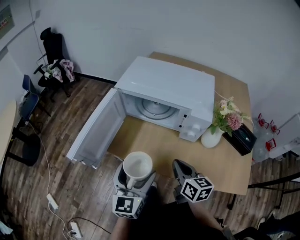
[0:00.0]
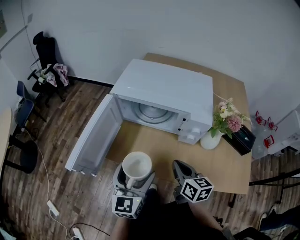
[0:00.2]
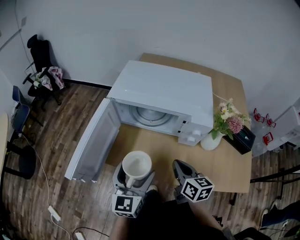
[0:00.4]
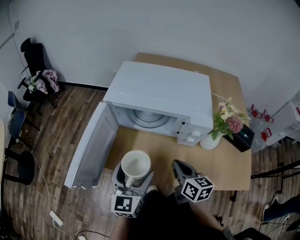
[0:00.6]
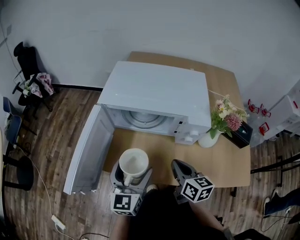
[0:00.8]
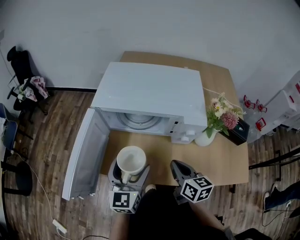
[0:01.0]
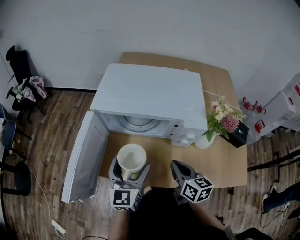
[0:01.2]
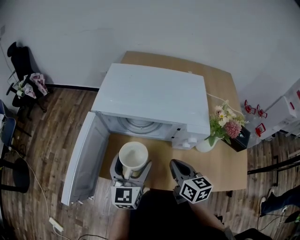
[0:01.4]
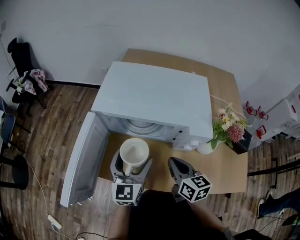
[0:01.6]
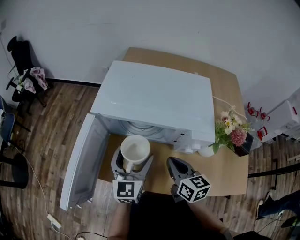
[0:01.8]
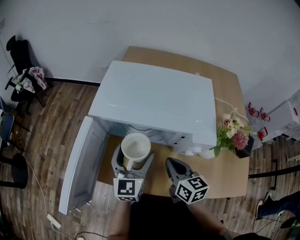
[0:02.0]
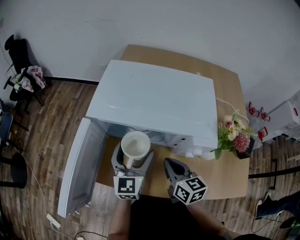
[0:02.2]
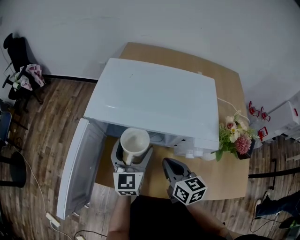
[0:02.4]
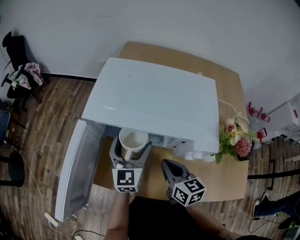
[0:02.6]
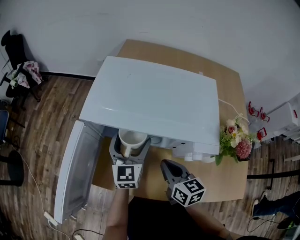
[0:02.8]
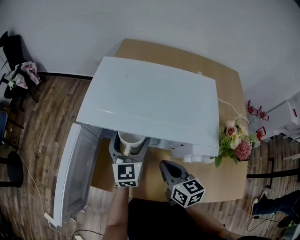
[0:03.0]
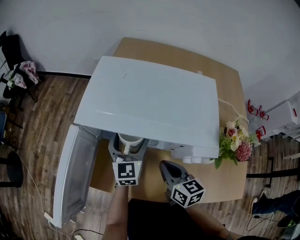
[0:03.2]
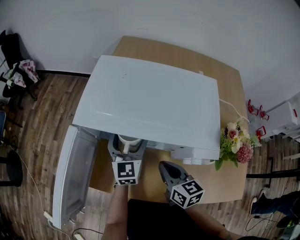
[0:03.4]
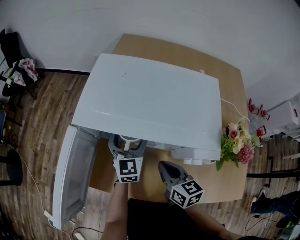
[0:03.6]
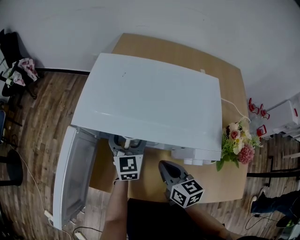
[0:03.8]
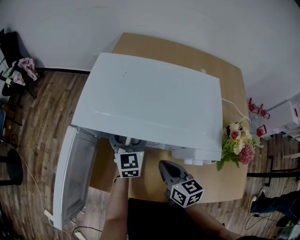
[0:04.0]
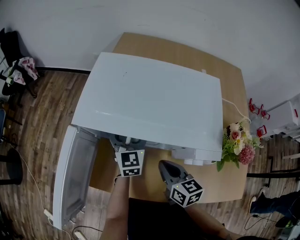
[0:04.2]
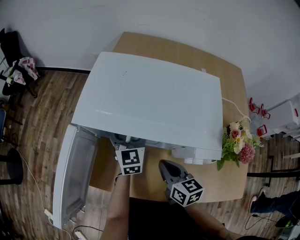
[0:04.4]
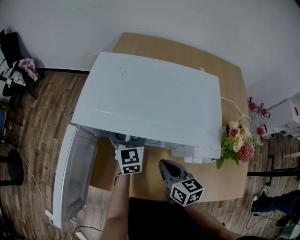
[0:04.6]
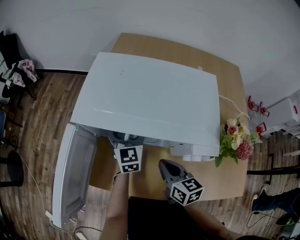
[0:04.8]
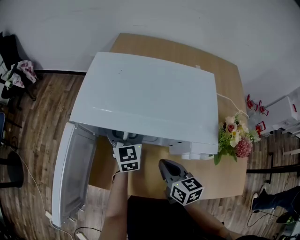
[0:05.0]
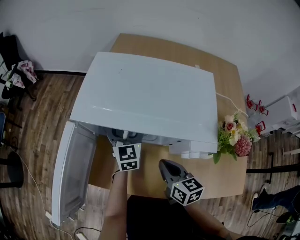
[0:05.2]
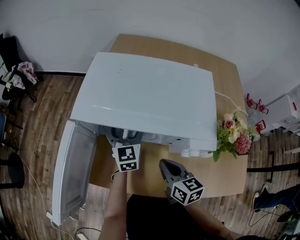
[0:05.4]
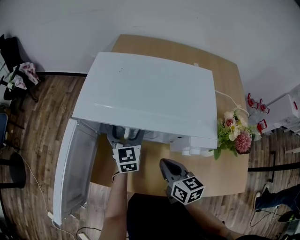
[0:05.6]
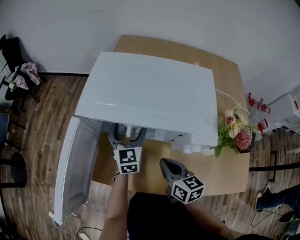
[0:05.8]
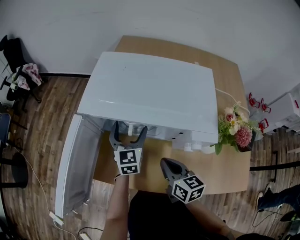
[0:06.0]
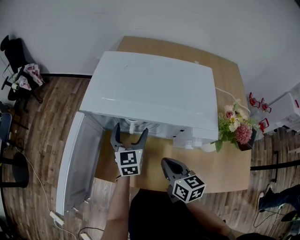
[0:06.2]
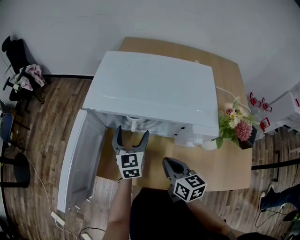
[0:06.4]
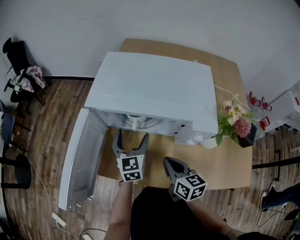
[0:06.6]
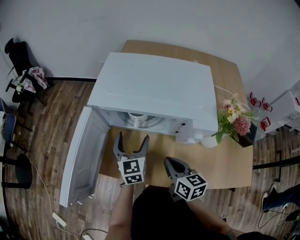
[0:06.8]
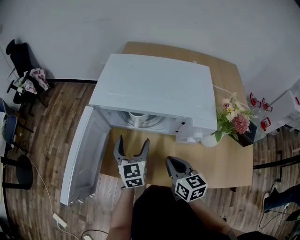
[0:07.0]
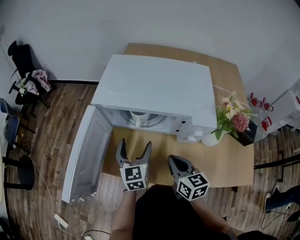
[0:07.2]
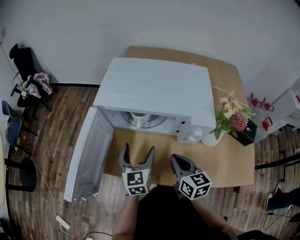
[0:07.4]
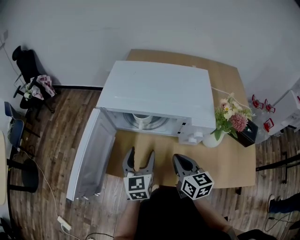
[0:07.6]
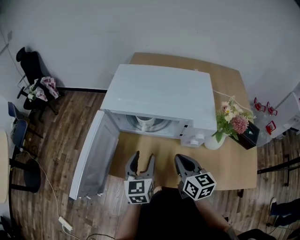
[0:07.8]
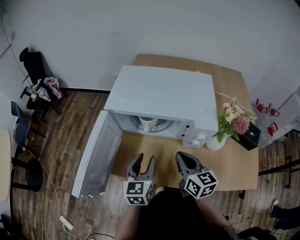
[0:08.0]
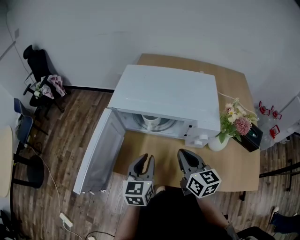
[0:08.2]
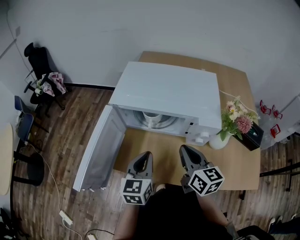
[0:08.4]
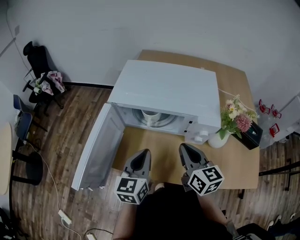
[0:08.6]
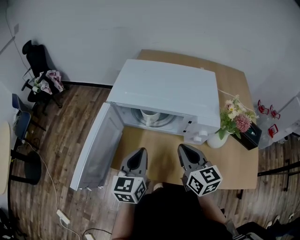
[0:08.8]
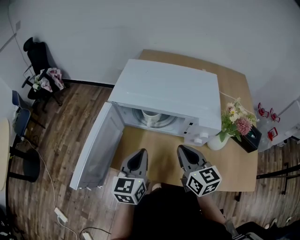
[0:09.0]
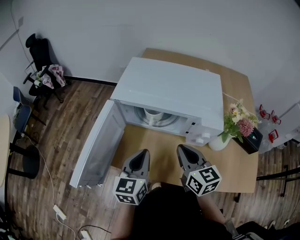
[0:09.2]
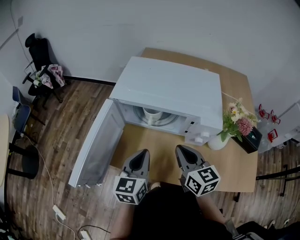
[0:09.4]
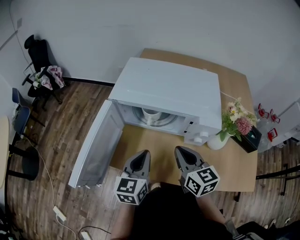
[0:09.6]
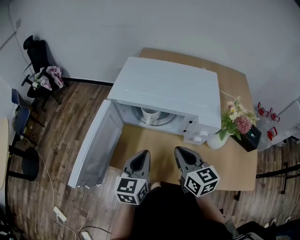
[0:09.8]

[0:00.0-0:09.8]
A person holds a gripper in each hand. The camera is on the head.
0:00.0 to 0:01.4: The left gripper shifts roughly 15 cm forward; the right gripper shifts roughly 10 cm forward.
0:01.4 to 0:02.8: The left gripper goes about 15 cm forward. The right gripper goes some 5 cm forward.
0:02.8 to 0:04.2: The left gripper goes some 5 cm forward.
0:04.2 to 0:05.6: The grippers move only a little.
0:05.6 to 0:07.0: The left gripper travels backward by roughly 10 cm.
0:07.0 to 0:08.4: The right gripper goes some 10 cm upward. Meanwhile the left gripper moves backward and upward, roughly 10 cm, and closes its fingers.
0:08.4 to 0:09.8: The grippers make only small movements.

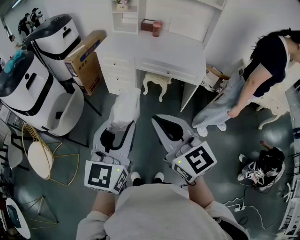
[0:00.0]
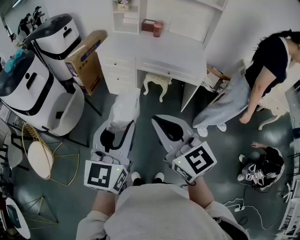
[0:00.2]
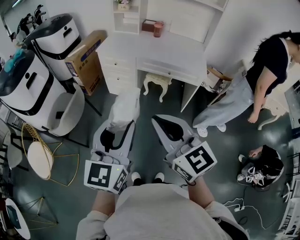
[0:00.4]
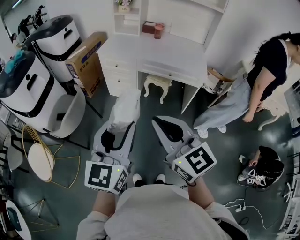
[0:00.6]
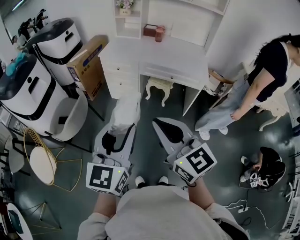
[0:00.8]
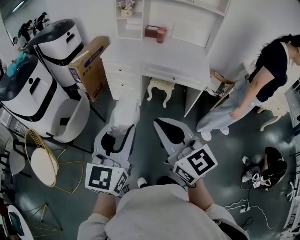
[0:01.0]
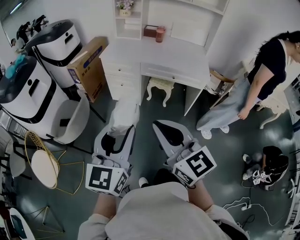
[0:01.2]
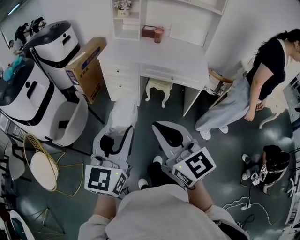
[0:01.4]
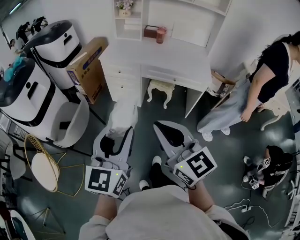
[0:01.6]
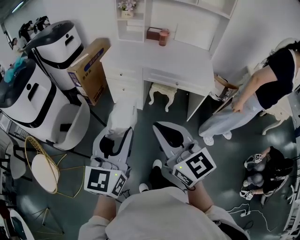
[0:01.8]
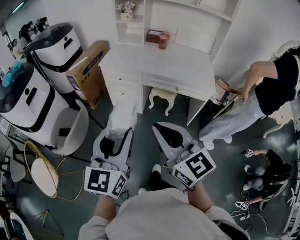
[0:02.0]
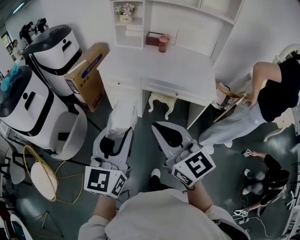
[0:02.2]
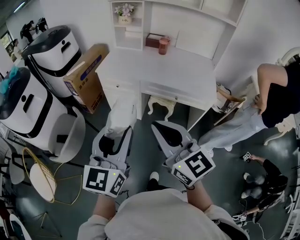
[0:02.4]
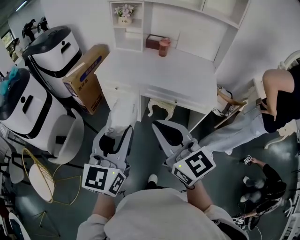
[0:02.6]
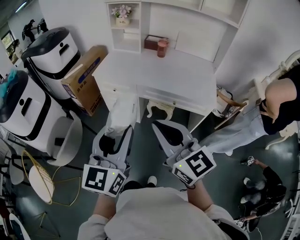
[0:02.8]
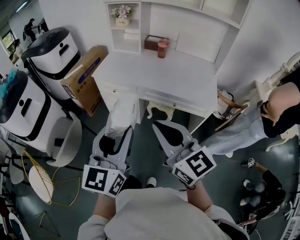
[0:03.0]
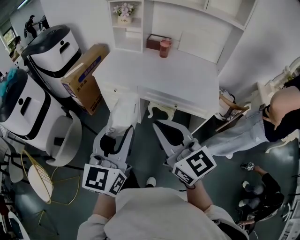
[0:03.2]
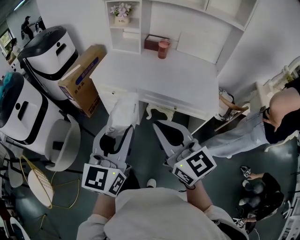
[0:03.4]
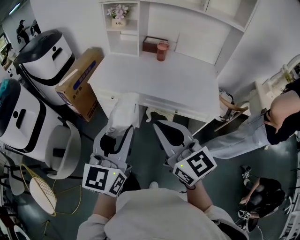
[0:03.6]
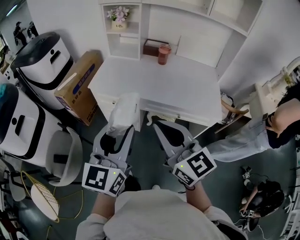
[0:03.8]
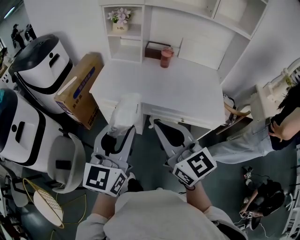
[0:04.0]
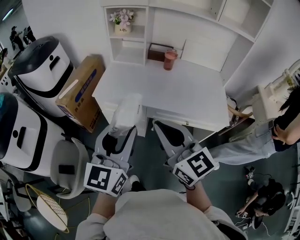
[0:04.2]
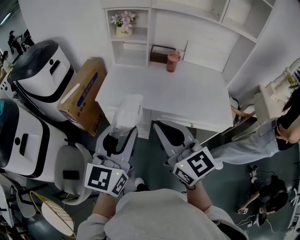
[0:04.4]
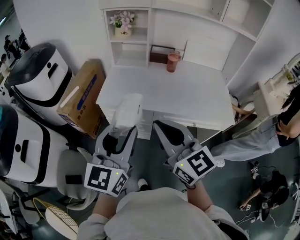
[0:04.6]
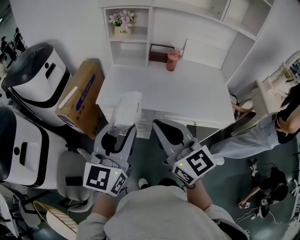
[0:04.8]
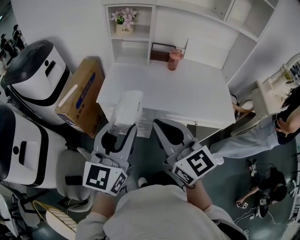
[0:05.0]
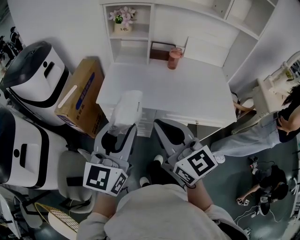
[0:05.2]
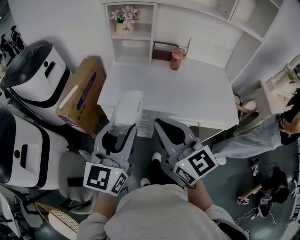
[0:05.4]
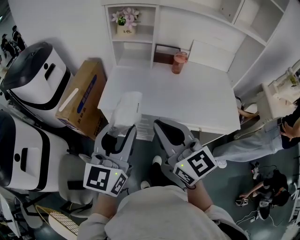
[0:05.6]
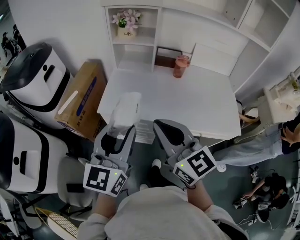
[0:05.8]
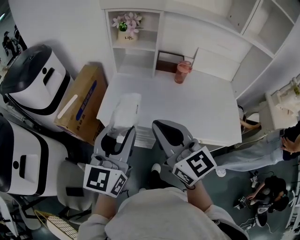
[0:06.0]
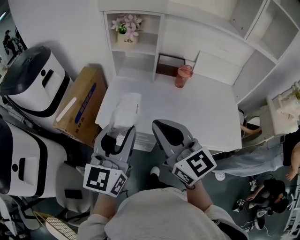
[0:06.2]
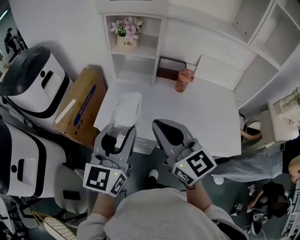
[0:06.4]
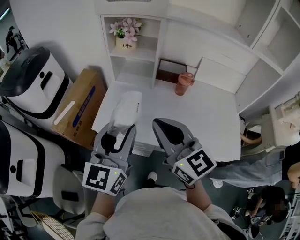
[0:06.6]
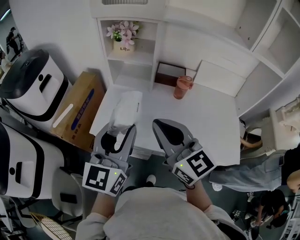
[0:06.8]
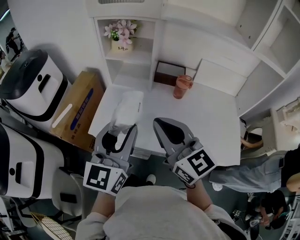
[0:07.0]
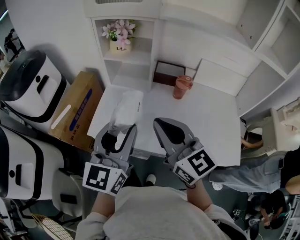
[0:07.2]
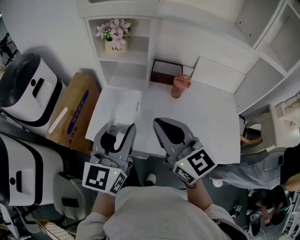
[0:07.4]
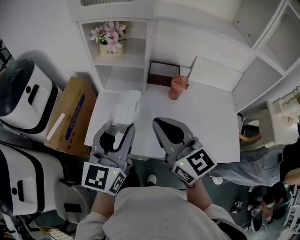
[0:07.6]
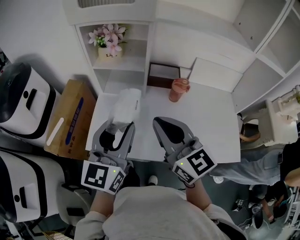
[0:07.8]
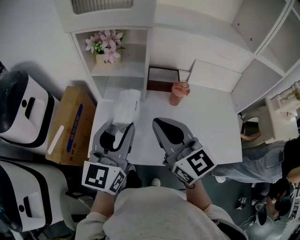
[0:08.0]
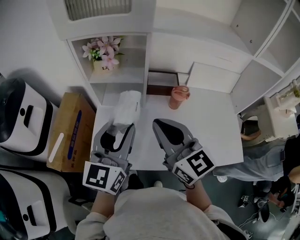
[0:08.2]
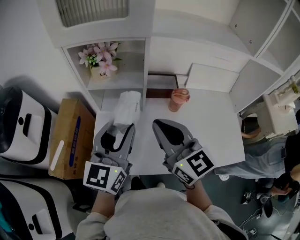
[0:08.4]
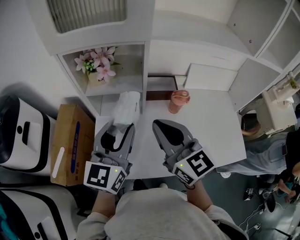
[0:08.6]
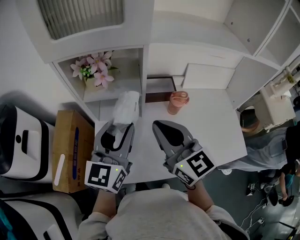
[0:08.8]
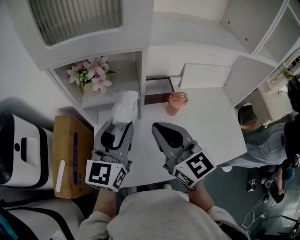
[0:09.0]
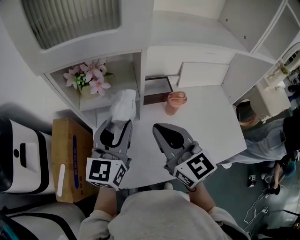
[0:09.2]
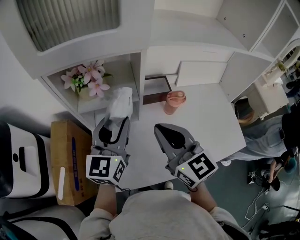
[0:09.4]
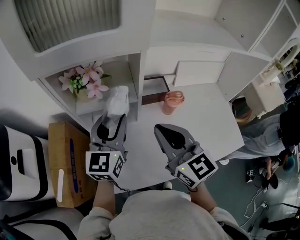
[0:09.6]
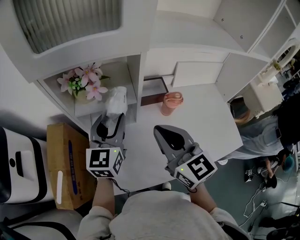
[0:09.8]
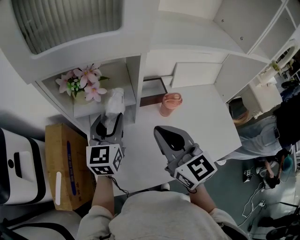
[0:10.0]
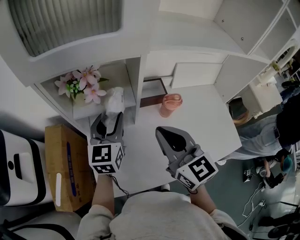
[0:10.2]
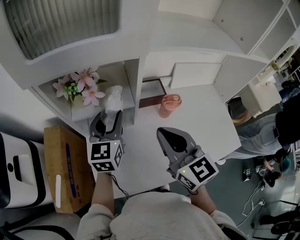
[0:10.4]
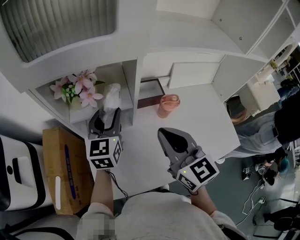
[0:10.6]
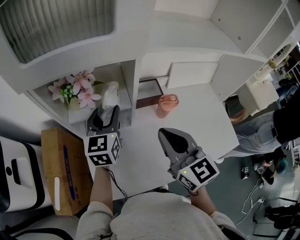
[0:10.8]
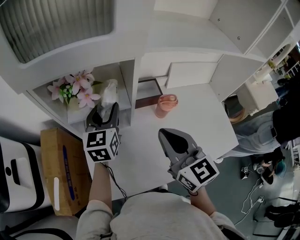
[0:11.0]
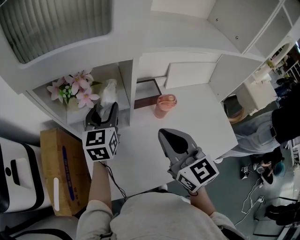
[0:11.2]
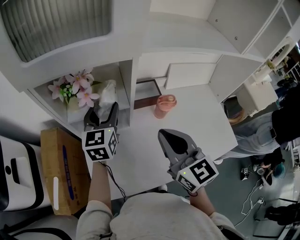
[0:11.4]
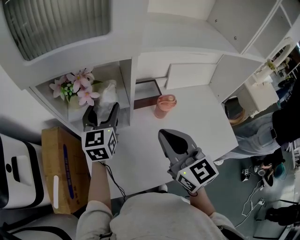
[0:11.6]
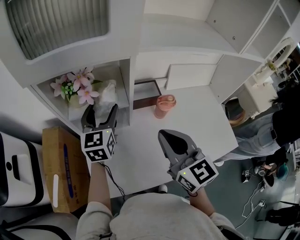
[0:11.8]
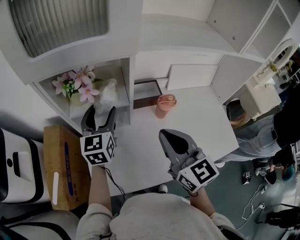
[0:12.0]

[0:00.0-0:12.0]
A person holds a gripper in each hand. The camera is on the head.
0:00.0 to 0:01.6: The two grippers go some 5 cm to the left.
0:01.6 to 0:03.0: The two grippers go approximately 25 cm forward and to the right.
0:03.0 to 0:04.4: Both grippers travel together forward and to the left, about 25 cm.
0:04.4 to 0:06.0: The two grippers go approximately 15 cm forward.
0:06.0 to 0:07.6: The grippers both shift forward and to the right by about 20 cm.
0:07.6 to 0:09.0: The two grippers go approximately 15 cm forward.
0:09.0 to 0:10.4: The left gripper shifts approximately 15 cm forward and downward.
0:10.4 to 0:12.0: The left gripper opens its fingers.

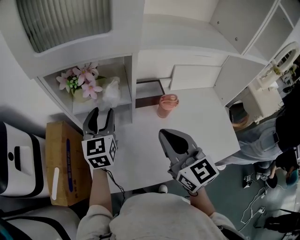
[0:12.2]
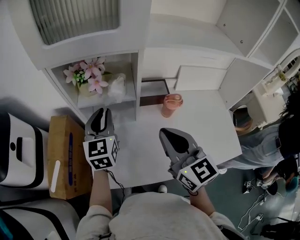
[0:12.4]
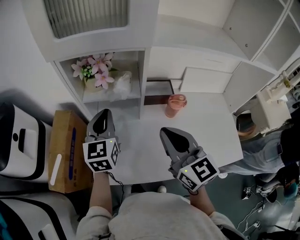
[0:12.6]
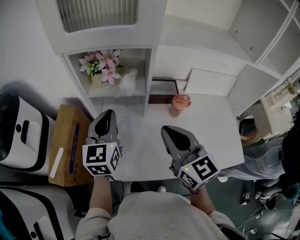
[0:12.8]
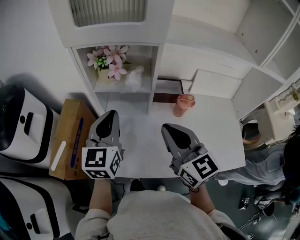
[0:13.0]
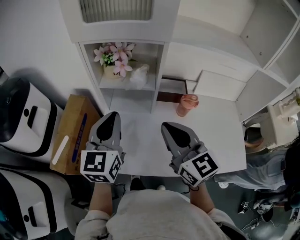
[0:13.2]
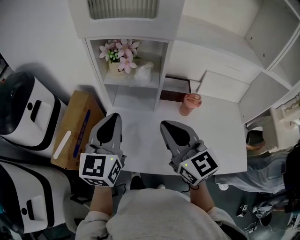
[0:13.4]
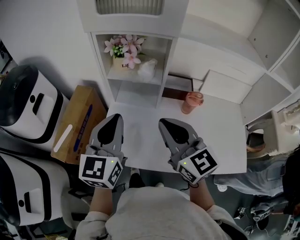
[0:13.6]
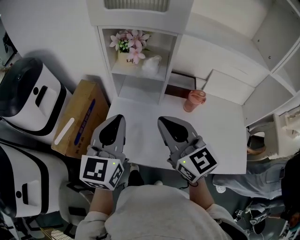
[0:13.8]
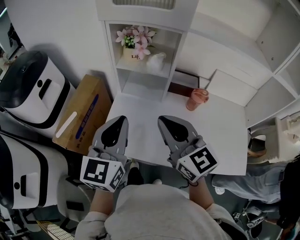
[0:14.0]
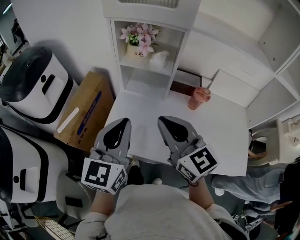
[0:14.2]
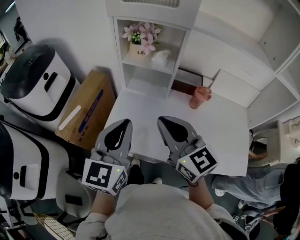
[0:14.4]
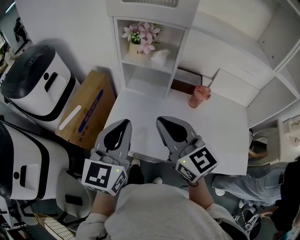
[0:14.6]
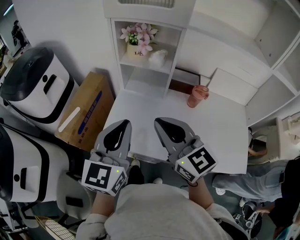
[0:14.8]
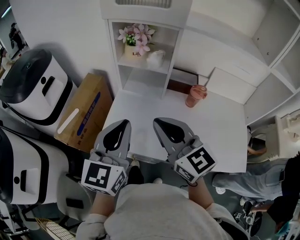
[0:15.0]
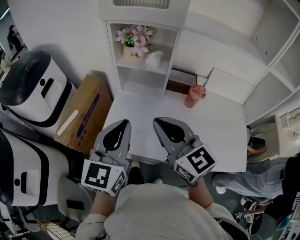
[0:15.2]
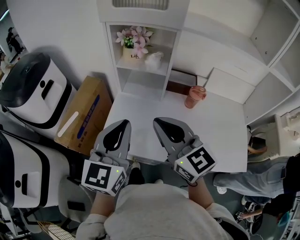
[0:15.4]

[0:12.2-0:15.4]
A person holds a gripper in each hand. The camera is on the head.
0:12.2 to 0:13.8: The right gripper shifts approximately 10 cm to the left and backward, and changes its angle by roughly 30 degrees, while the left gripper is displaced backward by some 20 cm, and closes.
0:13.8 to 0:15.4: The left gripper is displaced backward by some 5 cm. The right gripper shifts by roughly 5 cm.
